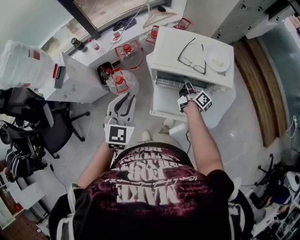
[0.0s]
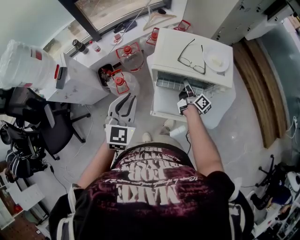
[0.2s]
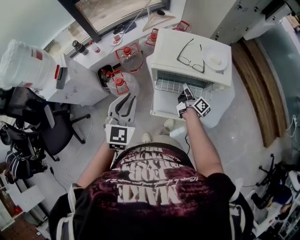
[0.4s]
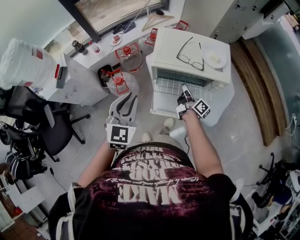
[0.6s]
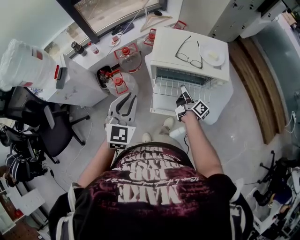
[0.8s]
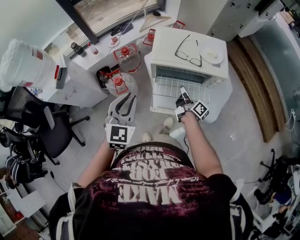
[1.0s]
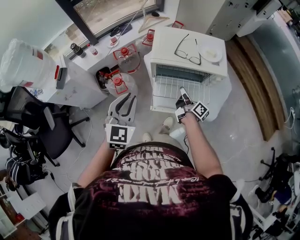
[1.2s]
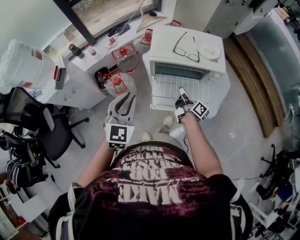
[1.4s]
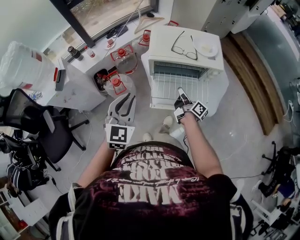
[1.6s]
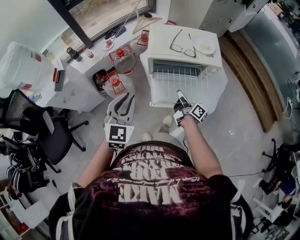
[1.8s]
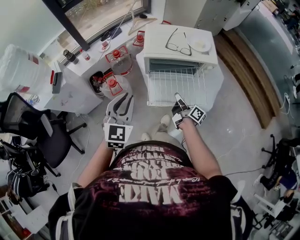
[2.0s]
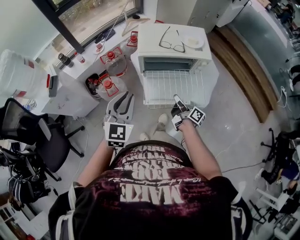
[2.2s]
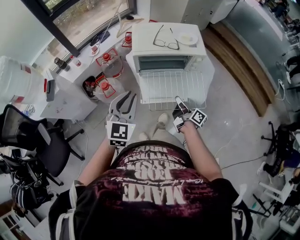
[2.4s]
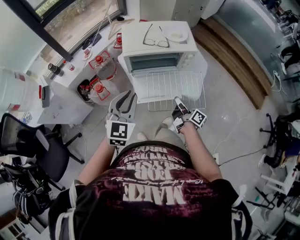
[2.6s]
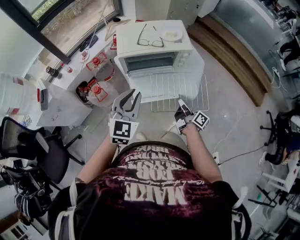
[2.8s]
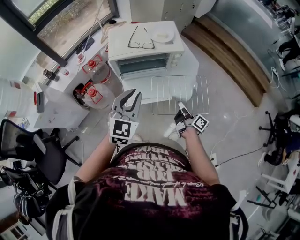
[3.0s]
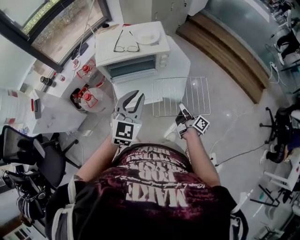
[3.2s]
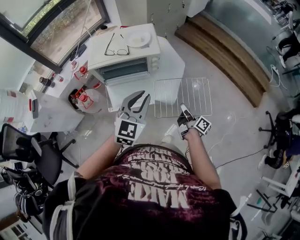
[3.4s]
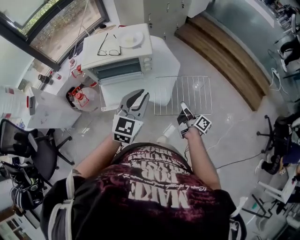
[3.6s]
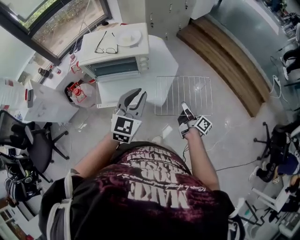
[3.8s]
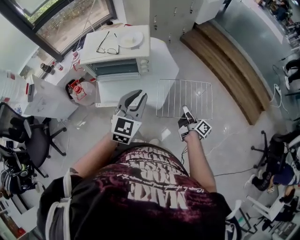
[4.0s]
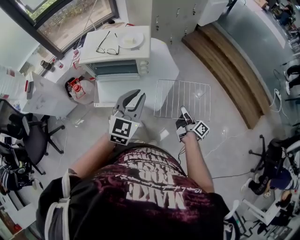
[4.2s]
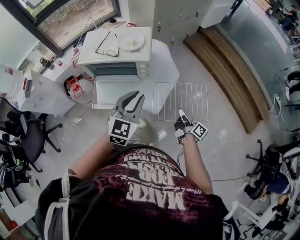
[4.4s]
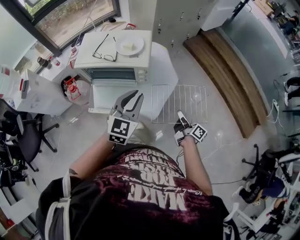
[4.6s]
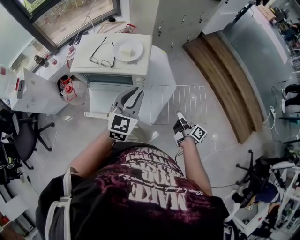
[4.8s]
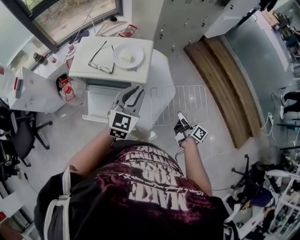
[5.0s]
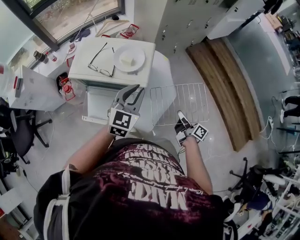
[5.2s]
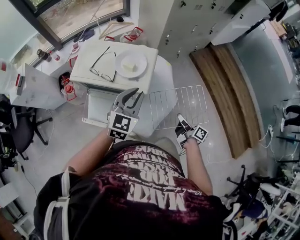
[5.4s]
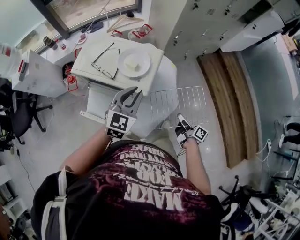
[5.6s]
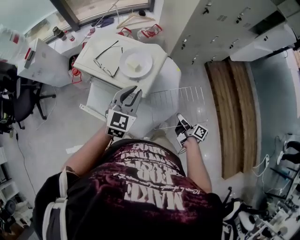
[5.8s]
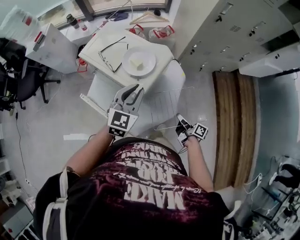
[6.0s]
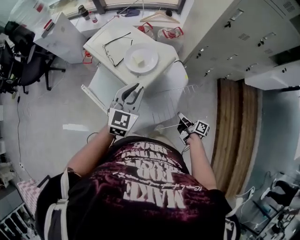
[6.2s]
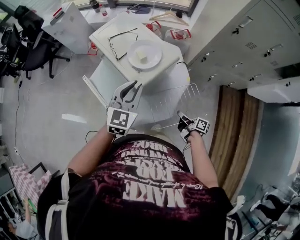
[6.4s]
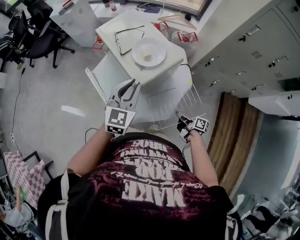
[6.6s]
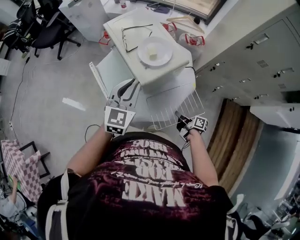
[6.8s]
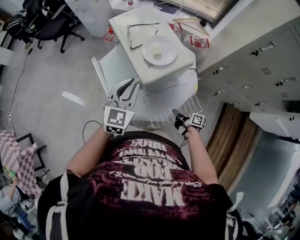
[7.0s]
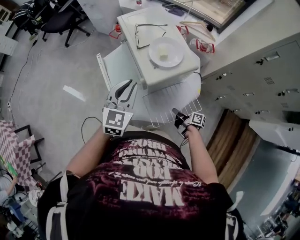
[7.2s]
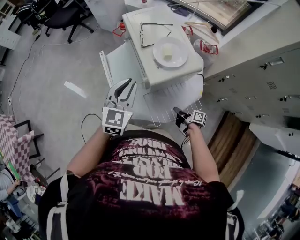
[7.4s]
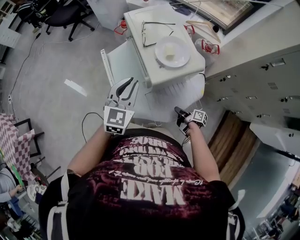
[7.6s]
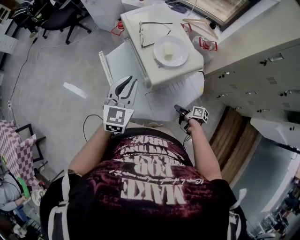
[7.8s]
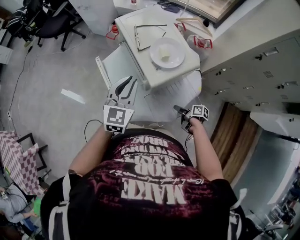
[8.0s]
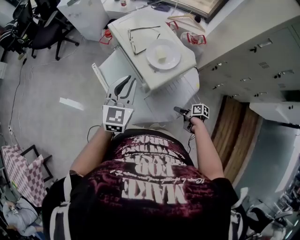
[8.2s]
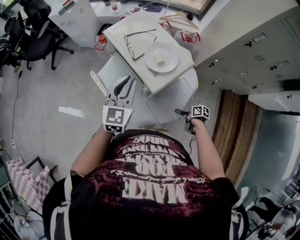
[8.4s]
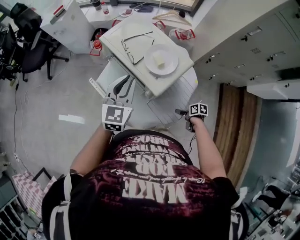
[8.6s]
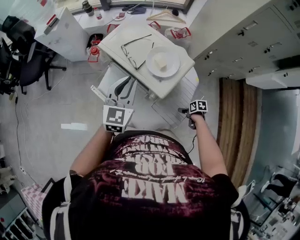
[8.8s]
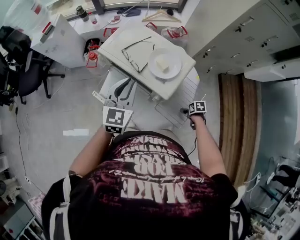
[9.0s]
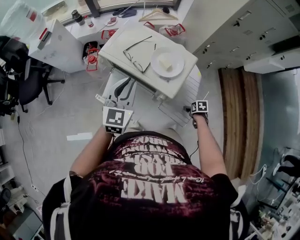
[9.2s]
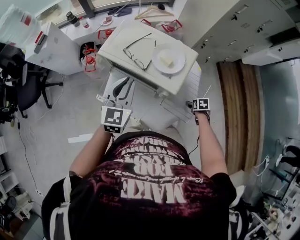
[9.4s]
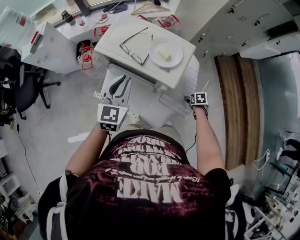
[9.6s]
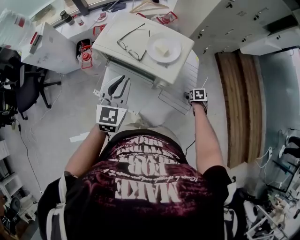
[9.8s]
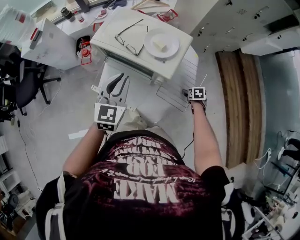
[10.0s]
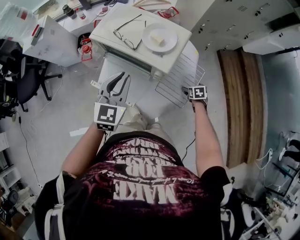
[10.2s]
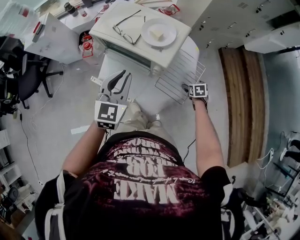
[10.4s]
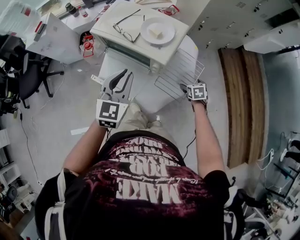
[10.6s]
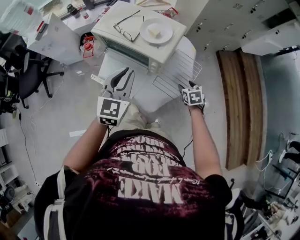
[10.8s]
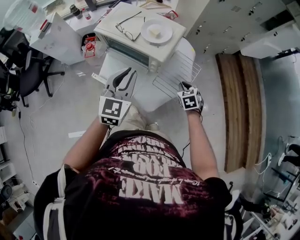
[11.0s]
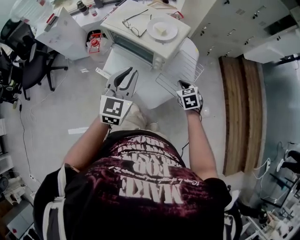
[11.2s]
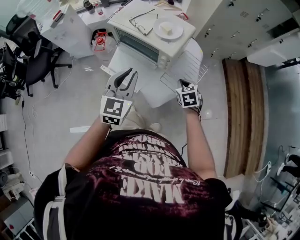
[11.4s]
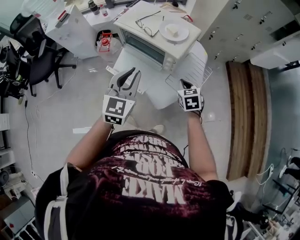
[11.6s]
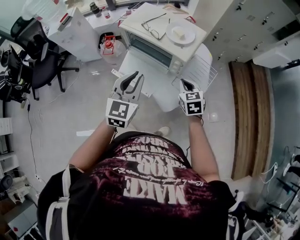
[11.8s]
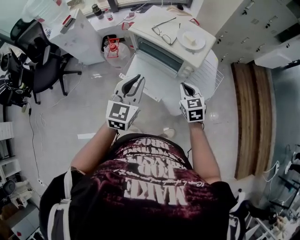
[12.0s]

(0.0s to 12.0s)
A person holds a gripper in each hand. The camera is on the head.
0.0s - 1.6s: The right gripper shifts approximately 15 cm backward, while the left gripper travels backward by approximately 5 cm.
1.6s - 3.0s: The left gripper shifts some 15 cm to the right, while the right gripper is displaced to the right and backward by about 20 cm.
3.0s - 4.4s: The grippers both shift to the right by approximately 25 cm.
4.4s - 6.0s: The right gripper ends up about 30 cm from where it was, and rotates approximately 50 degrees; the left gripper shifts by about 25 cm, and changes its angle by about 30 degrees.
6.0s - 7.6s: The left gripper changes place by some 10 cm, and swivels some 40 degrees, while the right gripper goes approximately 10 cm downward, and changes its angle by roughly 40 degrees.
7.6s - 9.0s: The left gripper ends up approximately 15 cm from where it was, and swivels about 30 degrees. Meanwhile the right gripper angles its fingers downward, by roughly 50 degrees, and opens up.
9.0s - 10.4s: The right gripper turns by approximately 20 degrees, while the left gripper moves some 10 cm.
10.4s - 12.0s: The left gripper is displaced to the left and backward by about 10 cm. Meanwhile the right gripper is displaced to the left and upward by approximately 35 cm, points its fingers some 30 degrees further upward, and closes up.

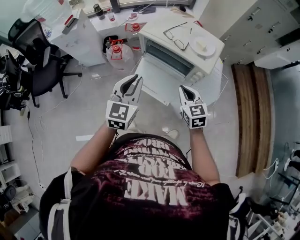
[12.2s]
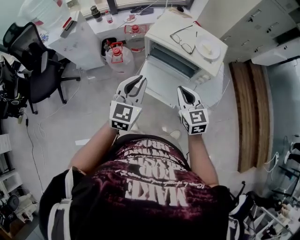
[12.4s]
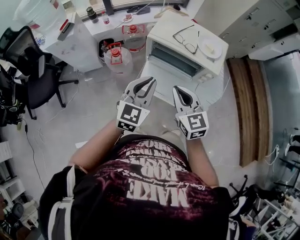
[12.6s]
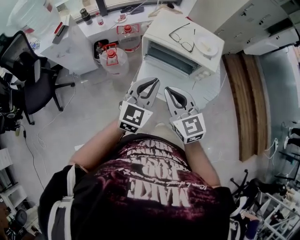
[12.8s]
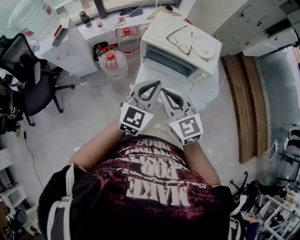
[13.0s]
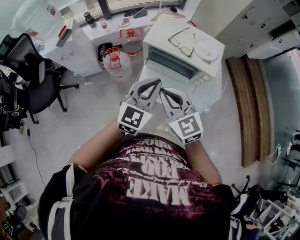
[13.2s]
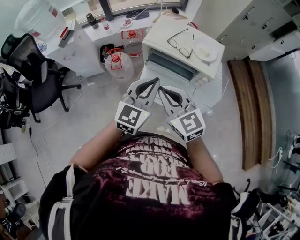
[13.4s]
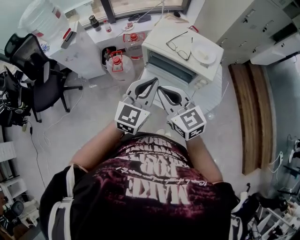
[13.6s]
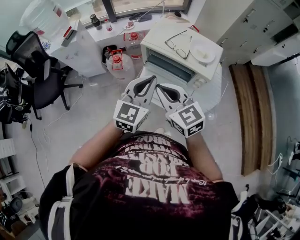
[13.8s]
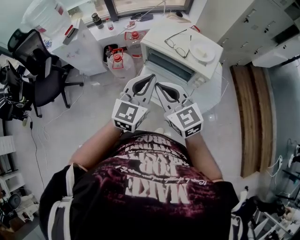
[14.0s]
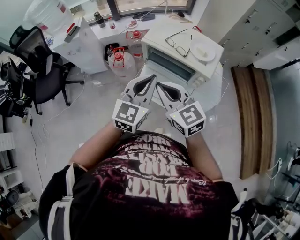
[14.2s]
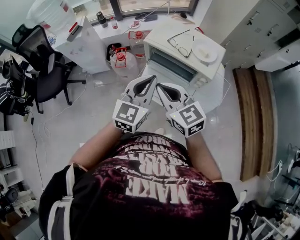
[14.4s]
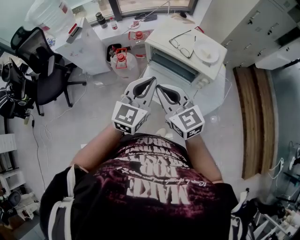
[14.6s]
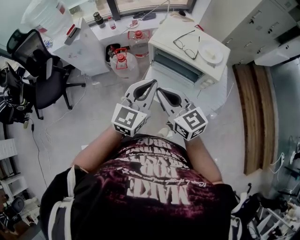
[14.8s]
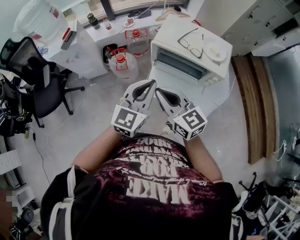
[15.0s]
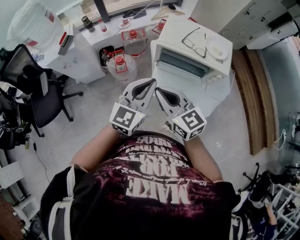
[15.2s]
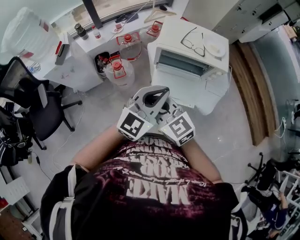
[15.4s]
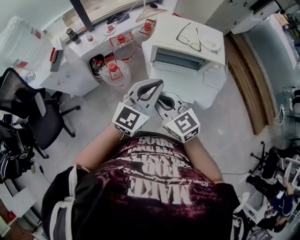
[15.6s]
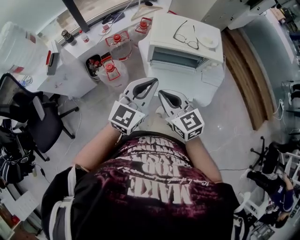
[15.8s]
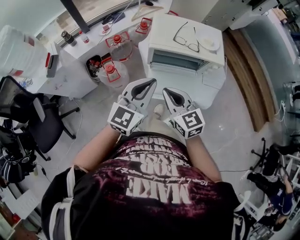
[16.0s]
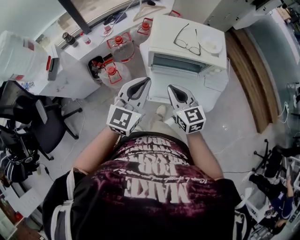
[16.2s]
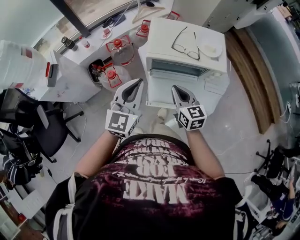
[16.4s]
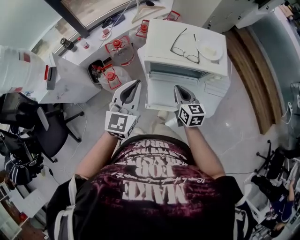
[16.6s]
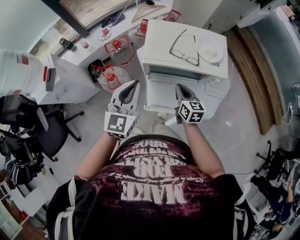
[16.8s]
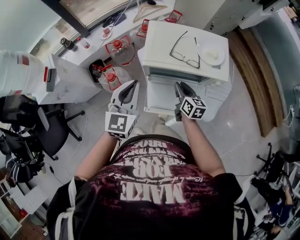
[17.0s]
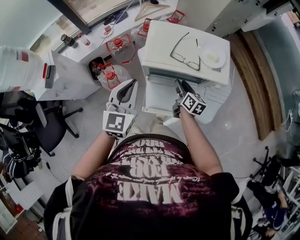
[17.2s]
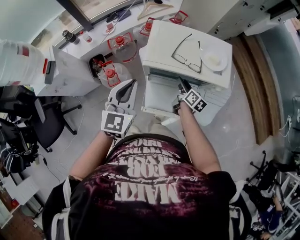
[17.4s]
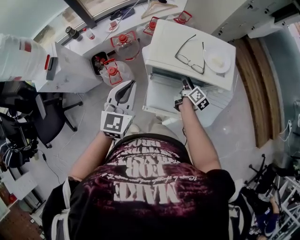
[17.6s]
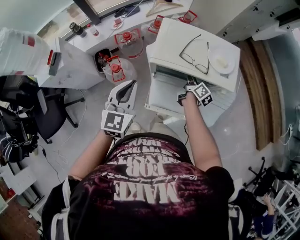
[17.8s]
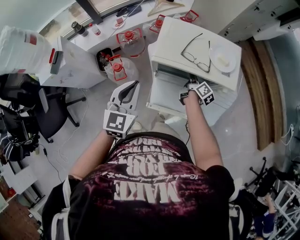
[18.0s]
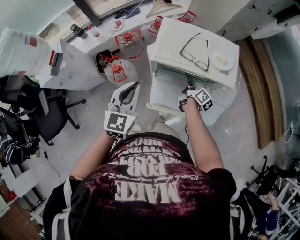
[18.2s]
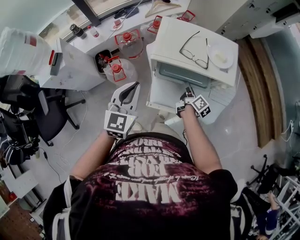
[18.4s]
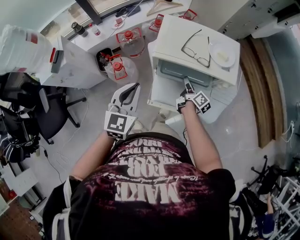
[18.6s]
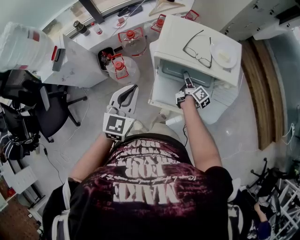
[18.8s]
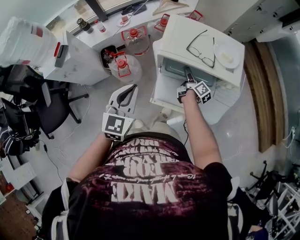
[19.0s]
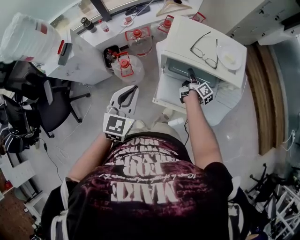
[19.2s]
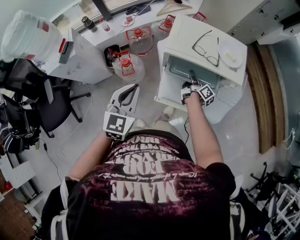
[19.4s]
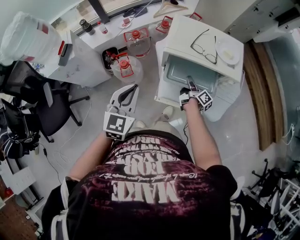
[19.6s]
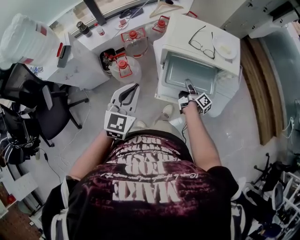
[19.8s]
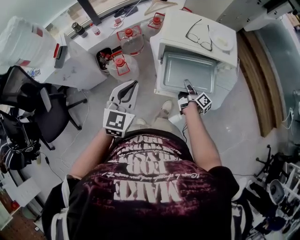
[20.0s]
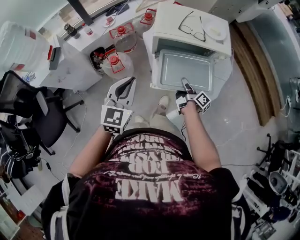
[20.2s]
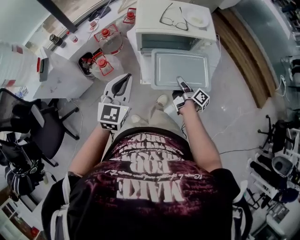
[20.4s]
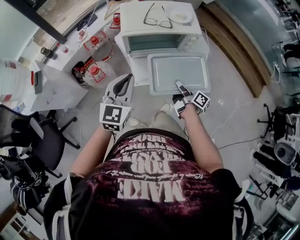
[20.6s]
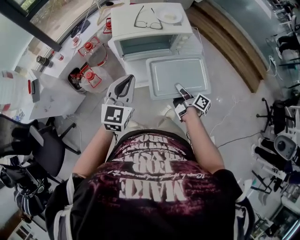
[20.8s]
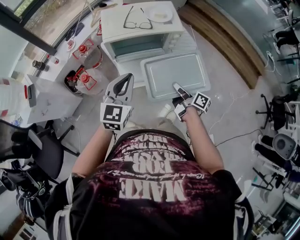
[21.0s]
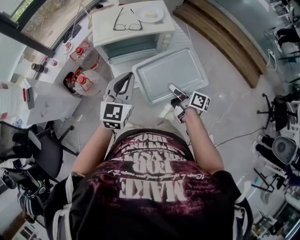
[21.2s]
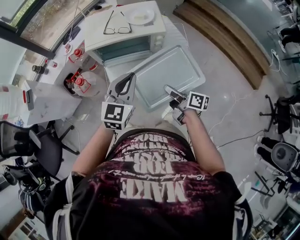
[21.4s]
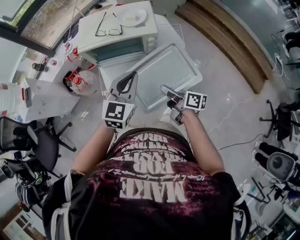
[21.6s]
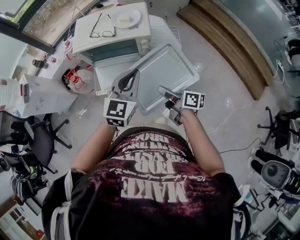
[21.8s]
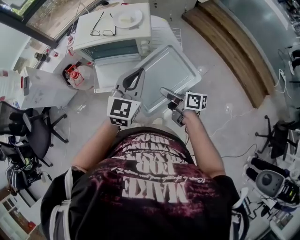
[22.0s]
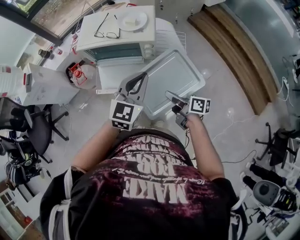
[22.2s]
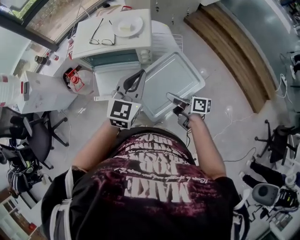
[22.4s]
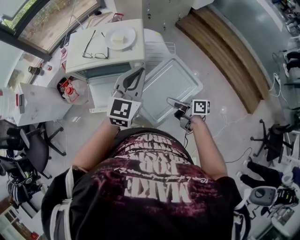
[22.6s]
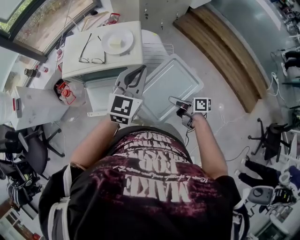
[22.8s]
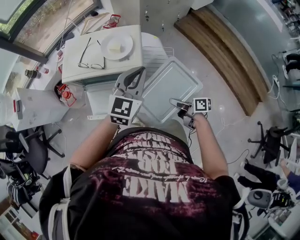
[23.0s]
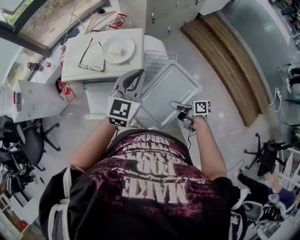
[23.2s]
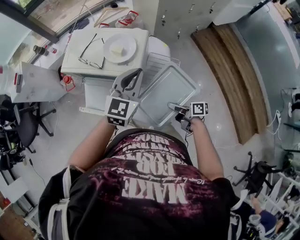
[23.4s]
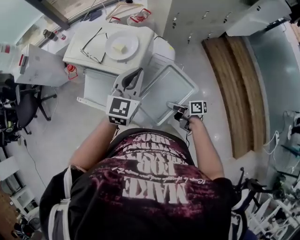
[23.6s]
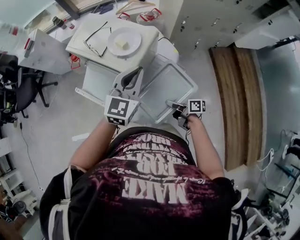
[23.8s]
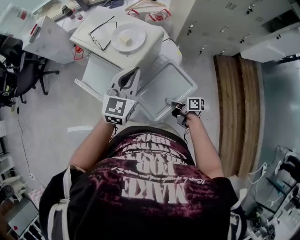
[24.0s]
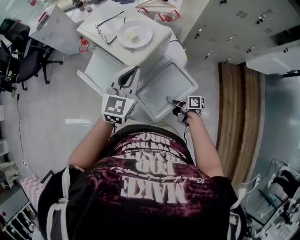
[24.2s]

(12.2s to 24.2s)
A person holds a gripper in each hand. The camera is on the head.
12.2s - 13.8s: The right gripper travels to the left and upward by about 20 cm, while the left gripper is displaced upward by some 5 cm.
13.8s - 15.2s: Both grippers travel together to the left, about 15 cm.
15.2s - 16.6s: The left gripper shifts some 10 cm forward; the right gripper is displaced downward, forward and to the right by about 25 cm, and changes its angle by approximately 40 degrees.
16.6s - 18.2s: The right gripper travels downward, forward and to the right by some 15 cm, and rolls clockwise, seen from behind, by some 50 degrees.
18.2s - 19.8s: The left gripper travels backward by approximately 10 cm, while the right gripper goes forward and backward, about 10 cm each way, reversing 2 times, and opens, then closes again.
19.8s - 21.2s: The left gripper goes some 20 cm to the right, and turns by about 20 degrees; the right gripper moves backward, to the right and upward, some 25 cm.
21.2s - 22.6s: The left gripper shifts about 25 cm to the right and forward. The right gripper shifts approximately 20 cm to the right, and turns by some 30 degrees.
22.6s - 24.2s: The left gripper ends up about 10 cm from where it was, and rotates roughly 40 degrees, while the right gripper changes place by about 25 cm, and rotates about 40 degrees.
